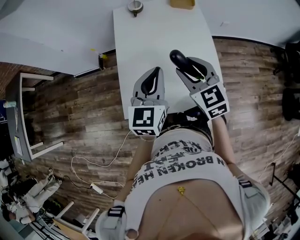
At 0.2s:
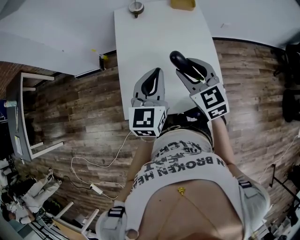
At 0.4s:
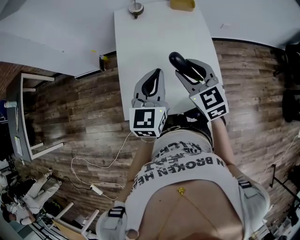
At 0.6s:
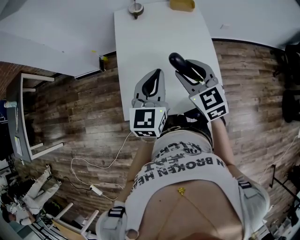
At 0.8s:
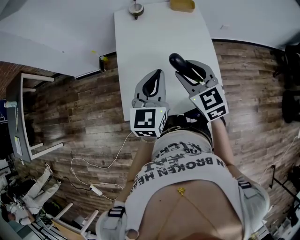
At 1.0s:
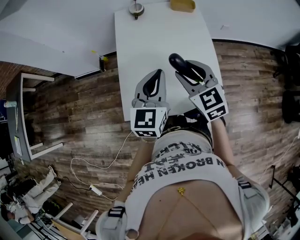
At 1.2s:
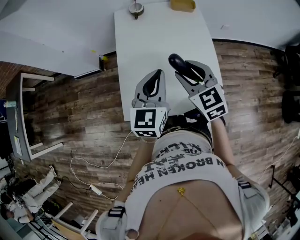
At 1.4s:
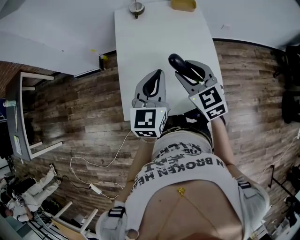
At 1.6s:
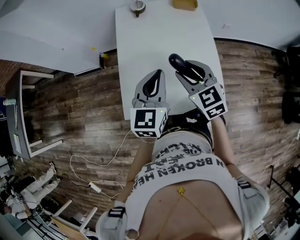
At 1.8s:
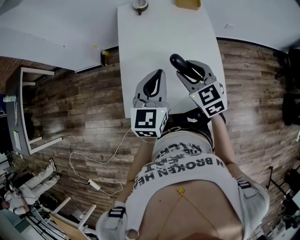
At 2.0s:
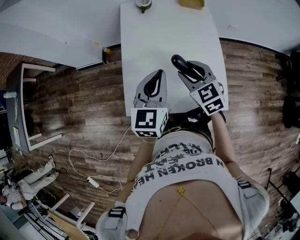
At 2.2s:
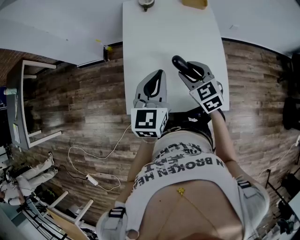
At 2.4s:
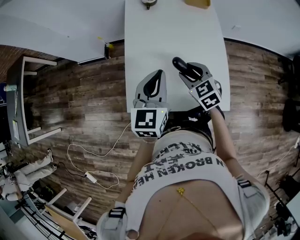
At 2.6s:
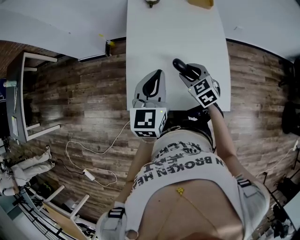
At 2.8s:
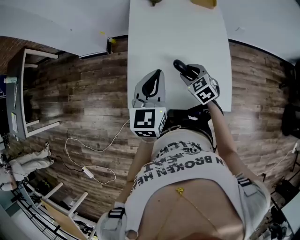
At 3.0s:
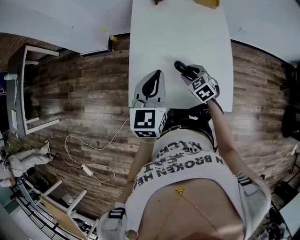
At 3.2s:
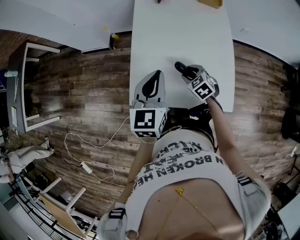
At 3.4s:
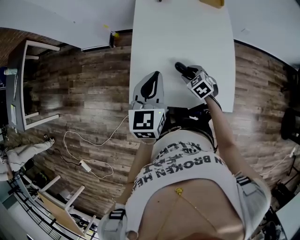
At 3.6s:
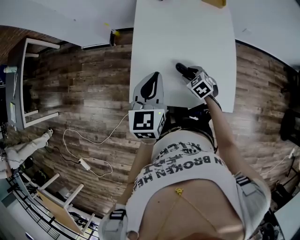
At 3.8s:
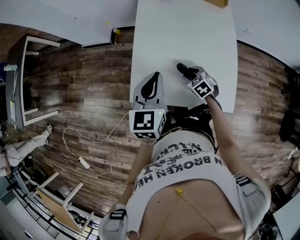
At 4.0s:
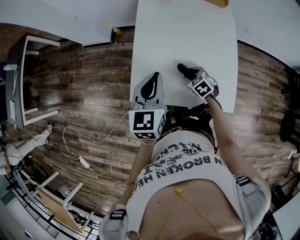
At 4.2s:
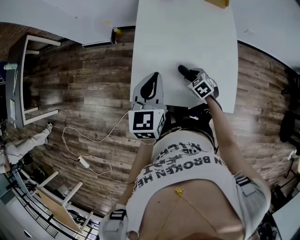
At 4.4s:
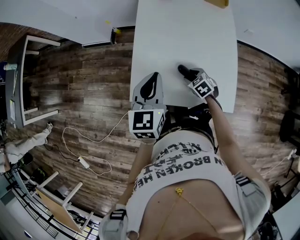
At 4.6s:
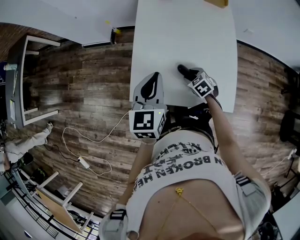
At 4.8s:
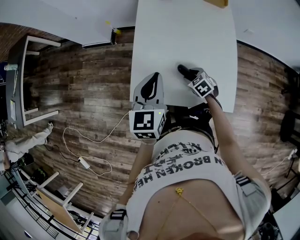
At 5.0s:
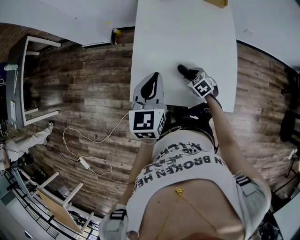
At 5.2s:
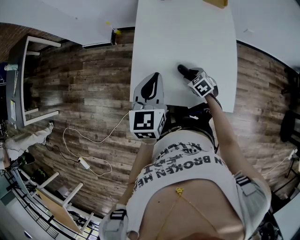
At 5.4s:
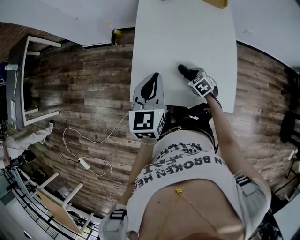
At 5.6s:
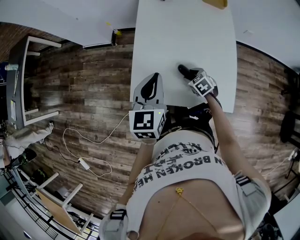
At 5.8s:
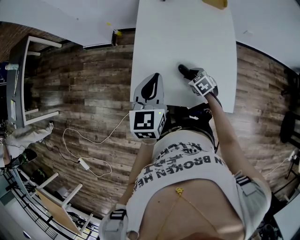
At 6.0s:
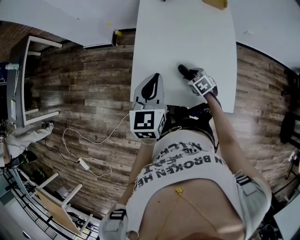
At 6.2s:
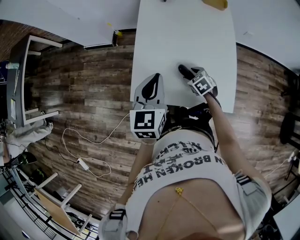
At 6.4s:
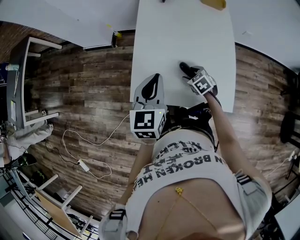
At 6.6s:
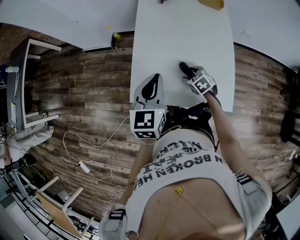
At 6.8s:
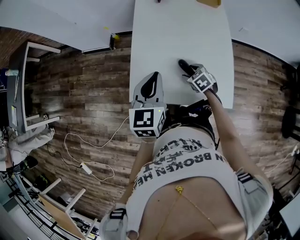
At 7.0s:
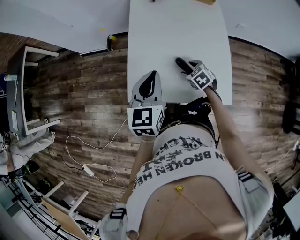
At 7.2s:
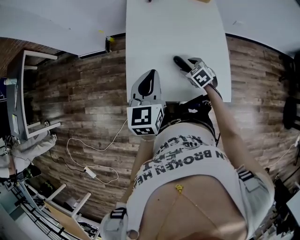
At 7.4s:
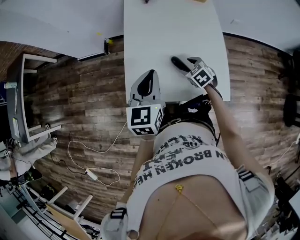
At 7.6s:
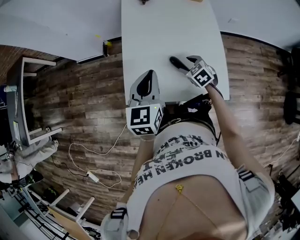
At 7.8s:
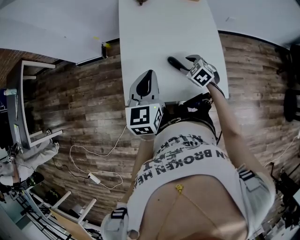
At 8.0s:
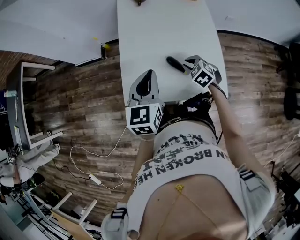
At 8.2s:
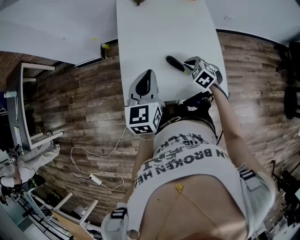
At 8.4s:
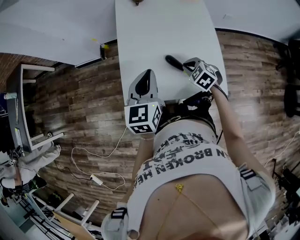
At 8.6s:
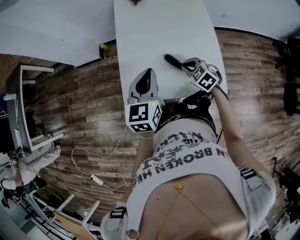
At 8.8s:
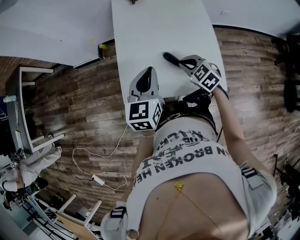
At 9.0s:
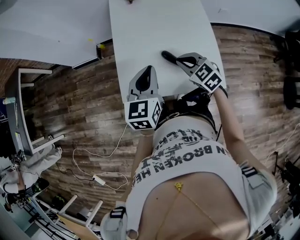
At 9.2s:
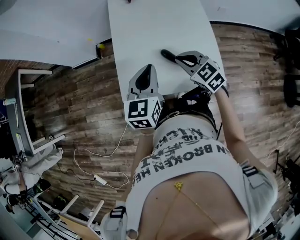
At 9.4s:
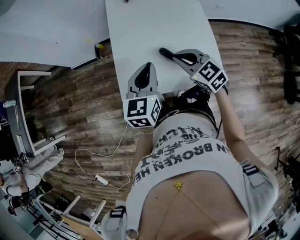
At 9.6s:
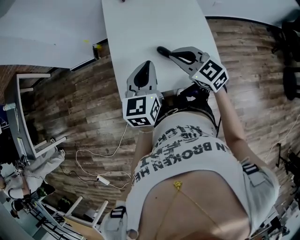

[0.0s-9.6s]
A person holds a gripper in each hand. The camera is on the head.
0.0s to 1.6s: The grippers move only a little.
1.6s to 3.2s: The left gripper goes approximately 5 cm to the left, while the right gripper moves downward, some 20 cm, and changes its angle by roughly 30 degrees.
3.2s to 4.8s: The right gripper heads downward, covering approximately 5 cm.
4.8s to 6.4s: There are only small adjustments of the grippers.
6.4s to 8.0s: The right gripper is displaced upward by roughly 5 cm, and closes up.
8.0s to 9.6s: The right gripper goes approximately 15 cm upward, and tilts its fingers roughly 30 degrees upward.

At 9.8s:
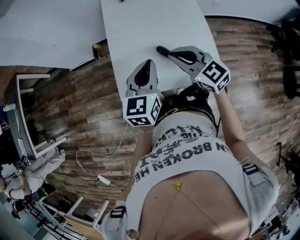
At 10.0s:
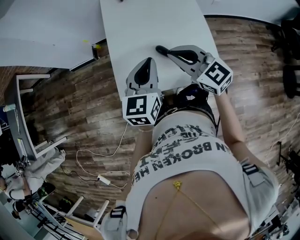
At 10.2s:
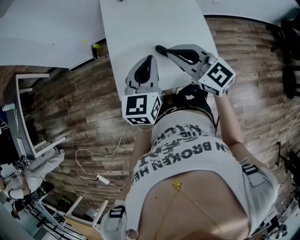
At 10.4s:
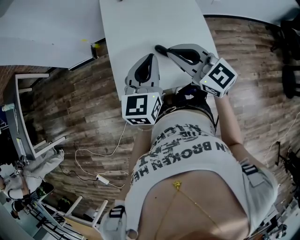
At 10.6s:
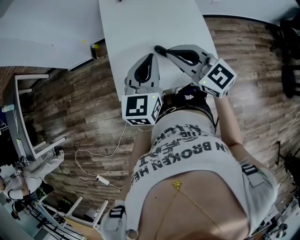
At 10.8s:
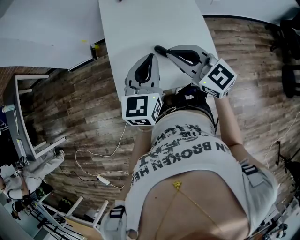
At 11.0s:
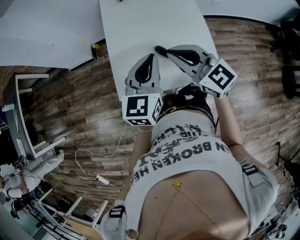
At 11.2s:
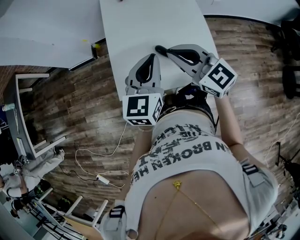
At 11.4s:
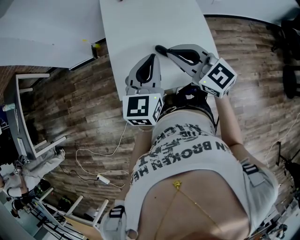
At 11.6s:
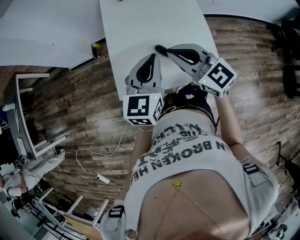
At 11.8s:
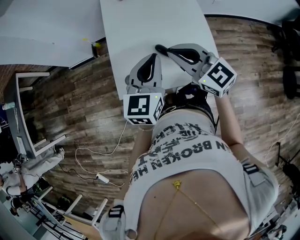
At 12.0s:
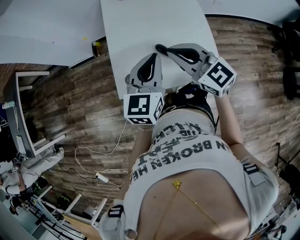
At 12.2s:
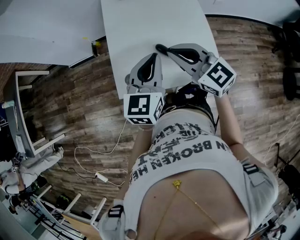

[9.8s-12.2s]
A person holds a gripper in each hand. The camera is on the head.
9.8s to 11.0s: The right gripper travels upward by approximately 5 cm.
11.0s to 12.2s: The grippers stay close to where they were, moving slightly.

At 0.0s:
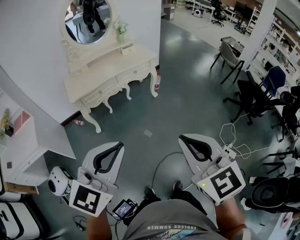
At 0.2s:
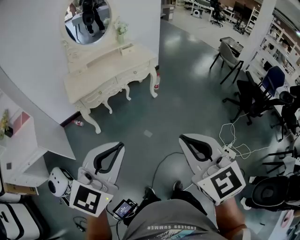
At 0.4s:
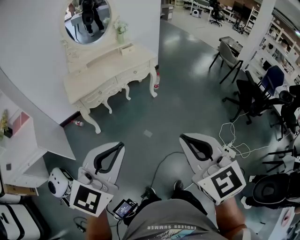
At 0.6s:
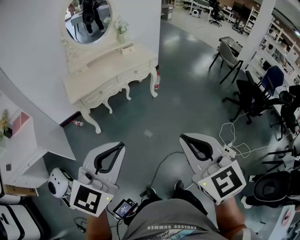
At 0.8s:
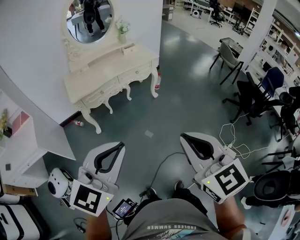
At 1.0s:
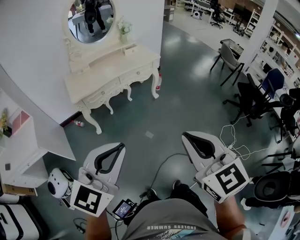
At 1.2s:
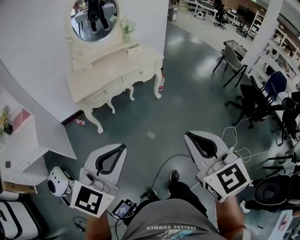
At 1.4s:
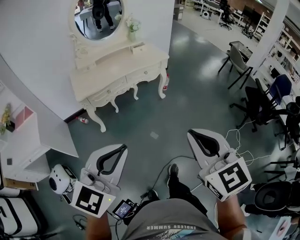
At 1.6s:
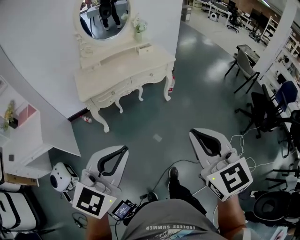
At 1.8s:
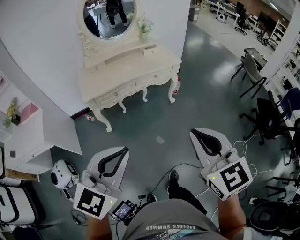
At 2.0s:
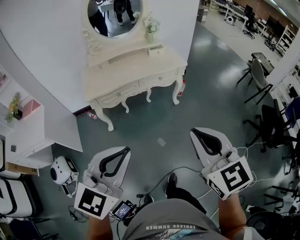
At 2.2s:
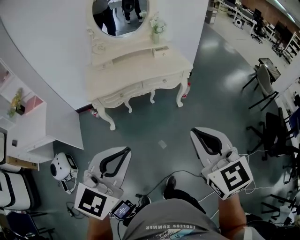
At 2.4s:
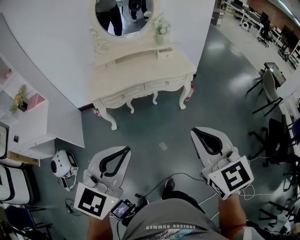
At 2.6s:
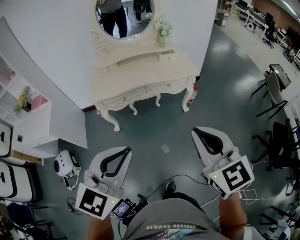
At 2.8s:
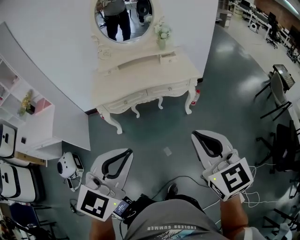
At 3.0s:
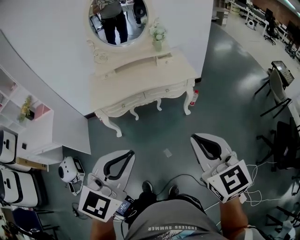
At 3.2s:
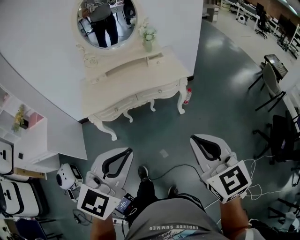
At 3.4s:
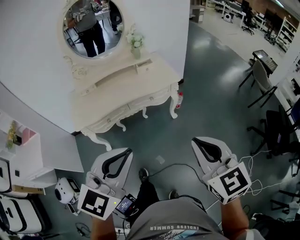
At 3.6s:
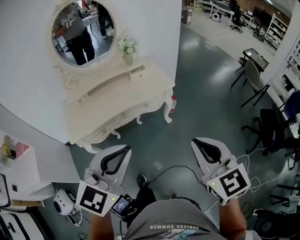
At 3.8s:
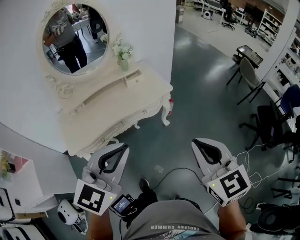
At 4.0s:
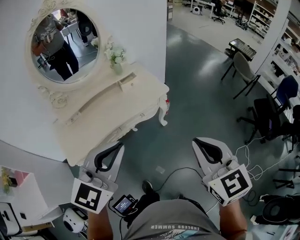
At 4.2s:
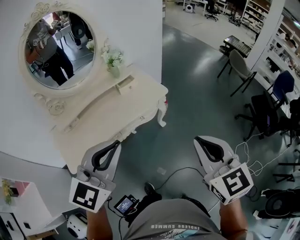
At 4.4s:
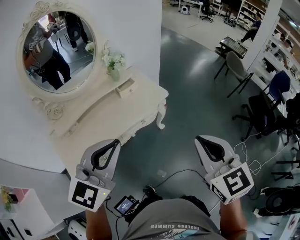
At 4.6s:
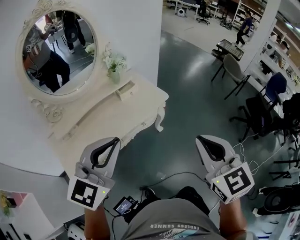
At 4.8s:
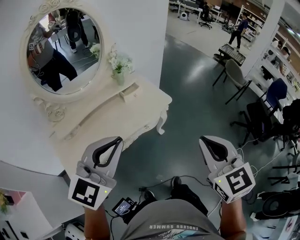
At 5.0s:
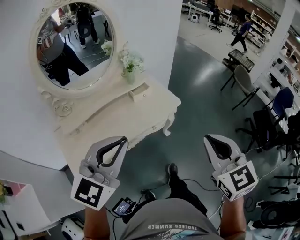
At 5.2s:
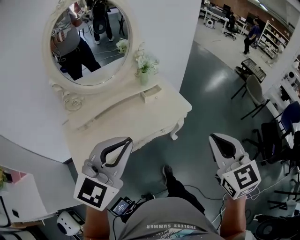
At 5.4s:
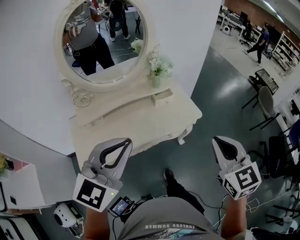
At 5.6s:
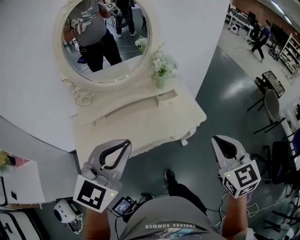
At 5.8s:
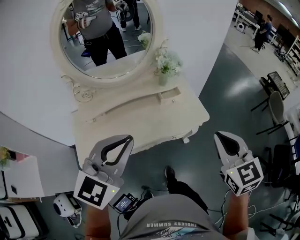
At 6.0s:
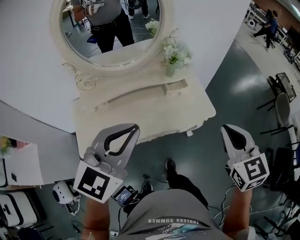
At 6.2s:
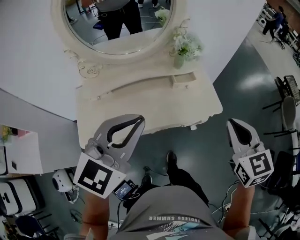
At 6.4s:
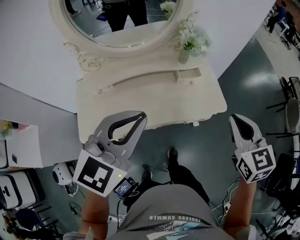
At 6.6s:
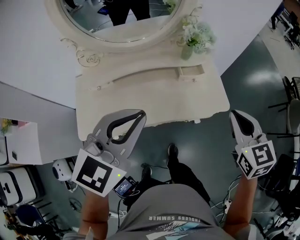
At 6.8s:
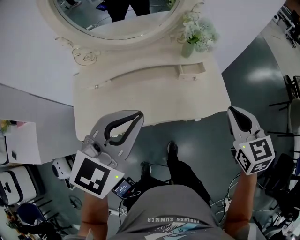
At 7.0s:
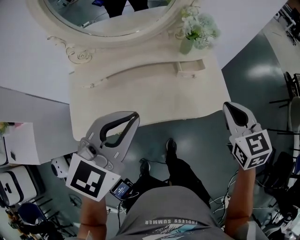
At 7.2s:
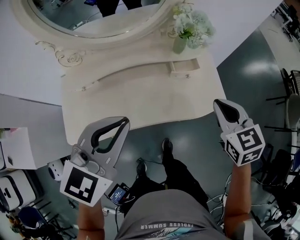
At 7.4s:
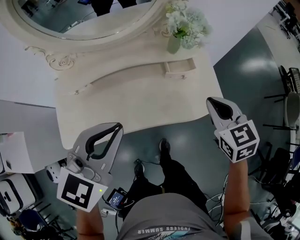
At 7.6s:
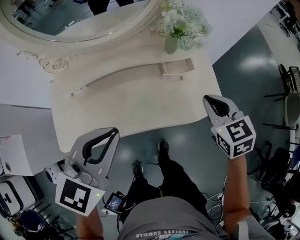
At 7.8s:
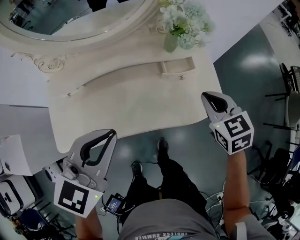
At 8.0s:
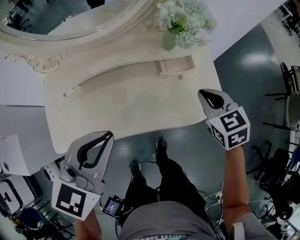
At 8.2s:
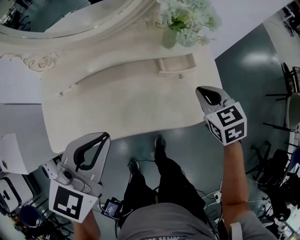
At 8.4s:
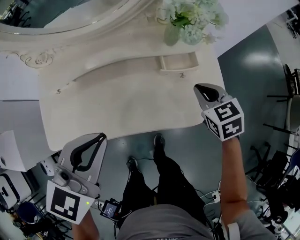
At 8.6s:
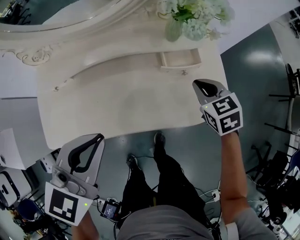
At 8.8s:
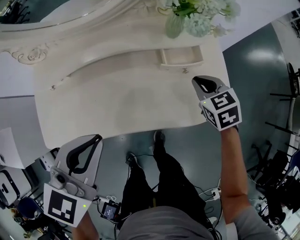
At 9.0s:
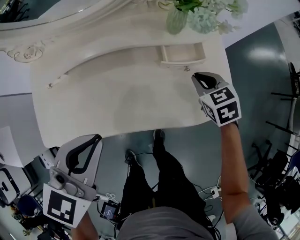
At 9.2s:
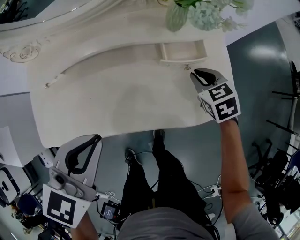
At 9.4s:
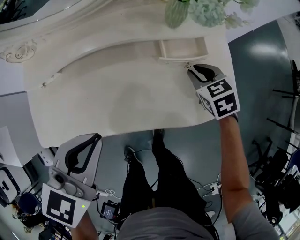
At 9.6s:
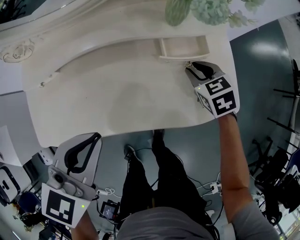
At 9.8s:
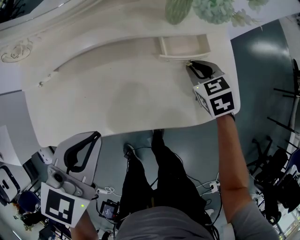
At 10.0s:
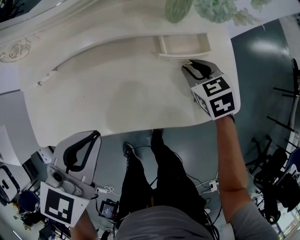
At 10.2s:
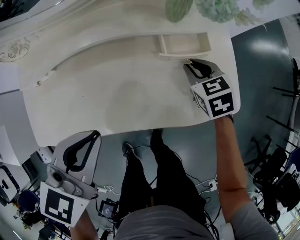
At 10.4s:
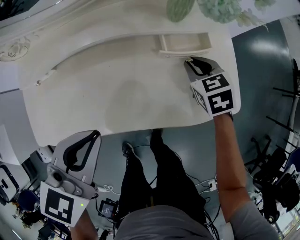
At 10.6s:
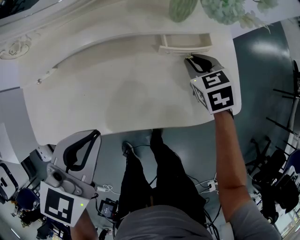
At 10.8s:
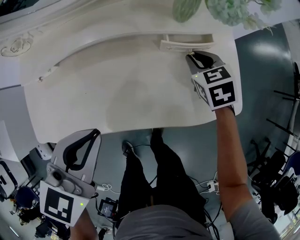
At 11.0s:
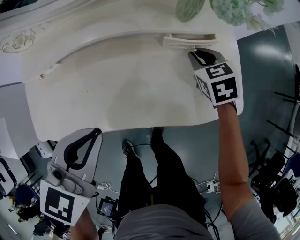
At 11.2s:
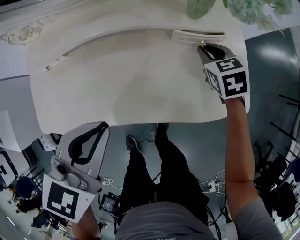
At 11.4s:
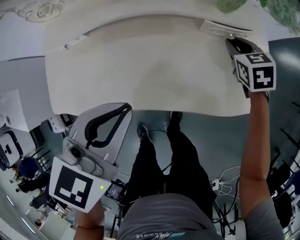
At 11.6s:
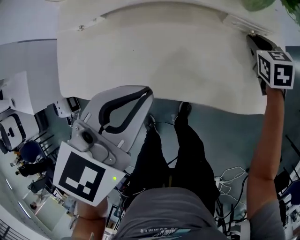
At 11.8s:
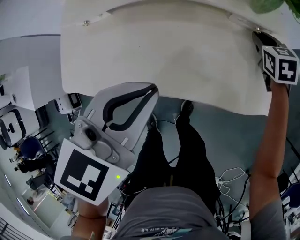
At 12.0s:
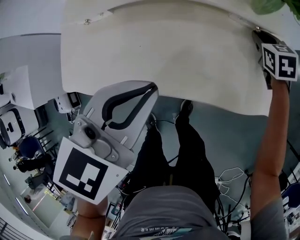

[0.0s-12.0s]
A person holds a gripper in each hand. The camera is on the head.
0.0s to 1.6s: The left gripper heads forward and to the left, covering about 10 cm. Meanwhile the right gripper goes some 10 cm forward.
1.6s to 3.0s: The grippers both shift forward and to the right by about 25 cm.
3.0s to 4.4s: The left gripper ends up about 35 cm from where it was, and changes its angle by about 20 degrees; the right gripper moves roughly 20 cm, and swivels approximately 30 degrees.
4.4s to 6.0s: The right gripper moves forward, roughly 25 cm. The left gripper goes approximately 15 cm forward and to the left.
6.0s to 7.6s: The left gripper shifts roughly 15 cm downward and forward; the right gripper moves downward and forward, some 30 cm.
7.6s to 9.0s: The left gripper moves downward, approximately 10 cm; the right gripper goes roughly 20 cm downward and forward.
9.0s to 10.4s: The right gripper shifts by some 5 cm.
10.4s to 12.0s: The right gripper moves forward, approximately 5 cm.
